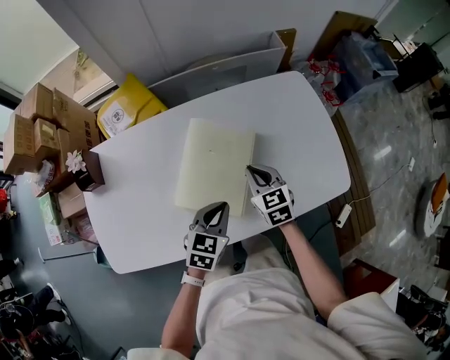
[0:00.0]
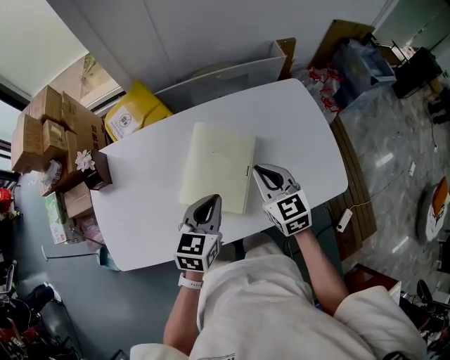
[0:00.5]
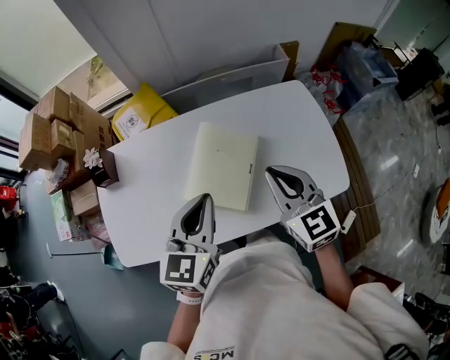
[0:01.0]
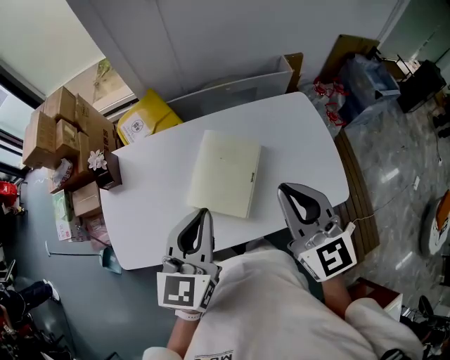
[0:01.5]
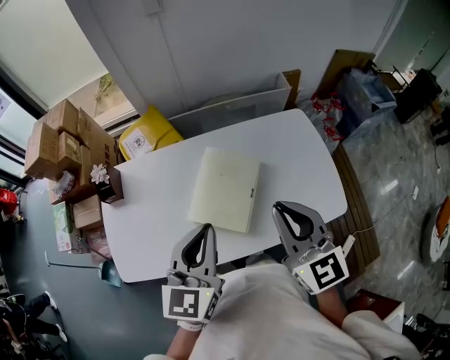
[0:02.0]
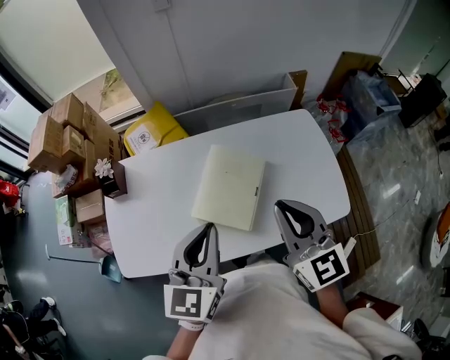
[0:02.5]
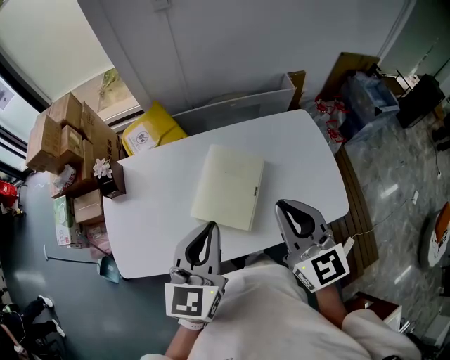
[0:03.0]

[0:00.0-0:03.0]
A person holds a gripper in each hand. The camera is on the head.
0.0 to 1.5 s: Both grippers move upward, some 30 cm. The left gripper changes its angle by roughly 30 degrees. Meanwhile the right gripper changes its angle by some 30 degrees.
1.5 to 3.0 s: There are only small adjustments of the grippers.

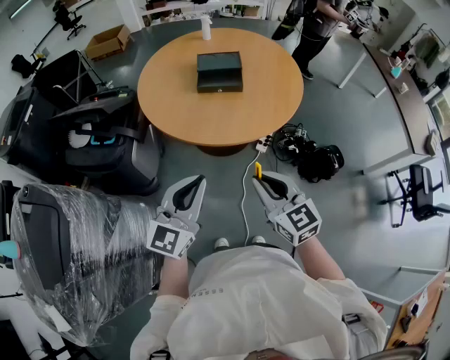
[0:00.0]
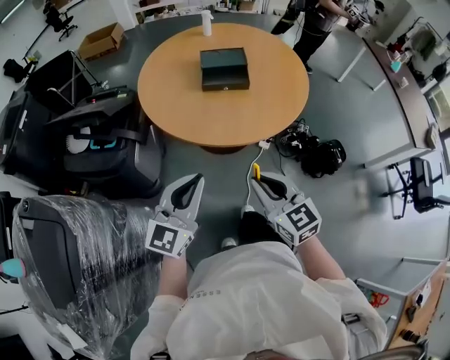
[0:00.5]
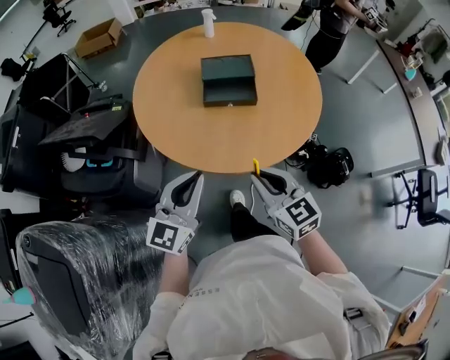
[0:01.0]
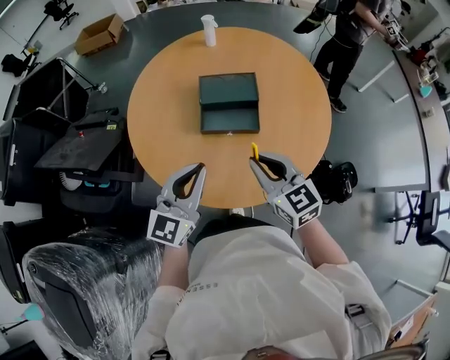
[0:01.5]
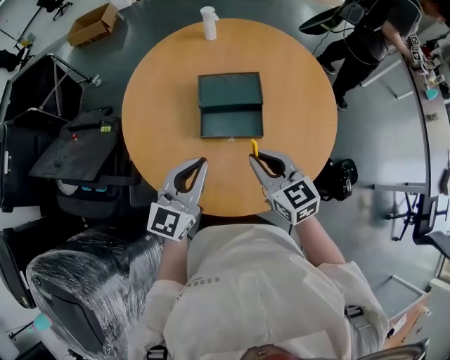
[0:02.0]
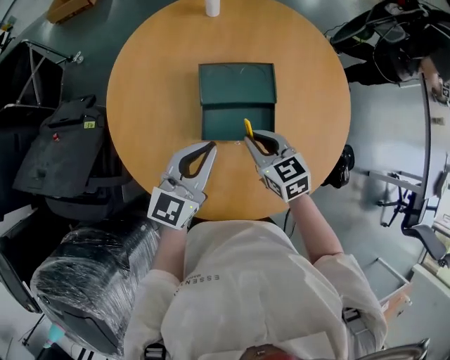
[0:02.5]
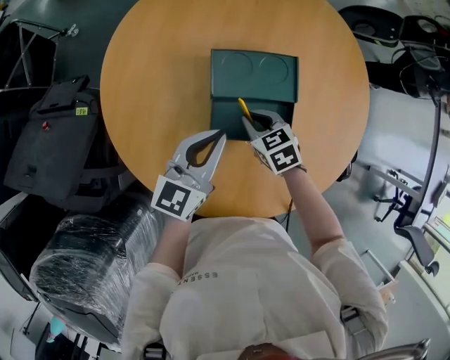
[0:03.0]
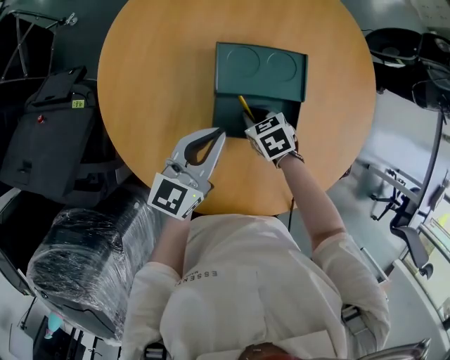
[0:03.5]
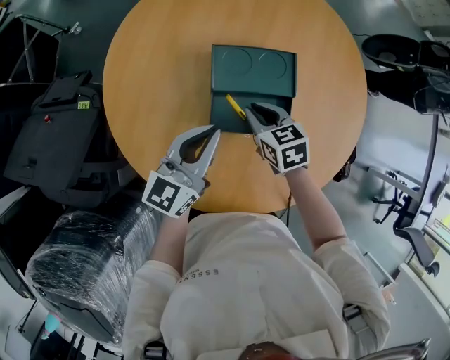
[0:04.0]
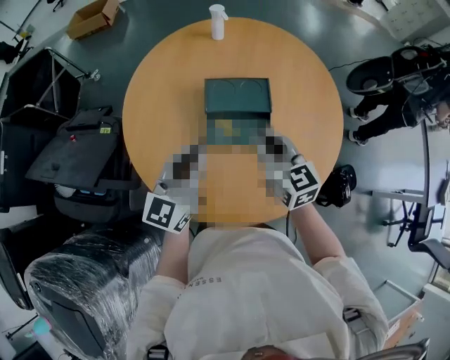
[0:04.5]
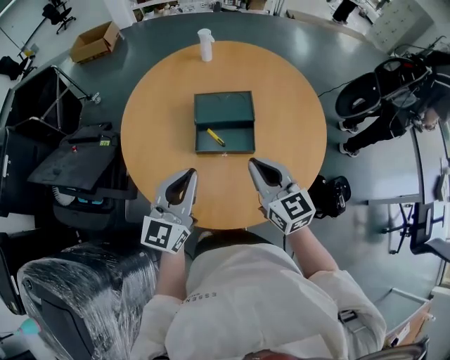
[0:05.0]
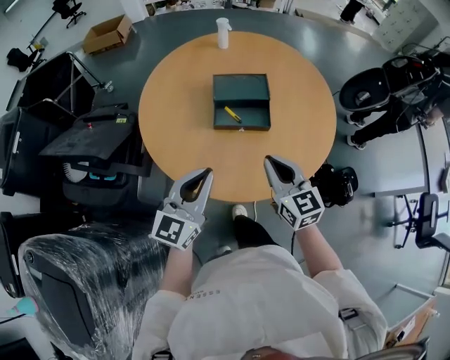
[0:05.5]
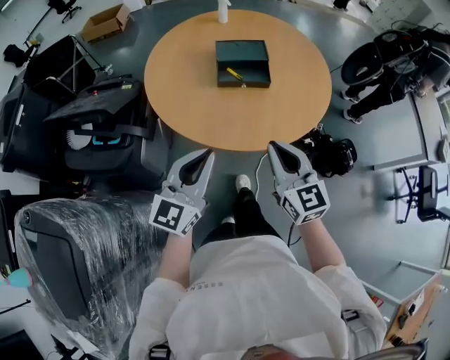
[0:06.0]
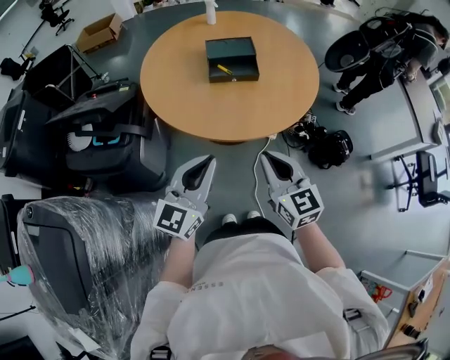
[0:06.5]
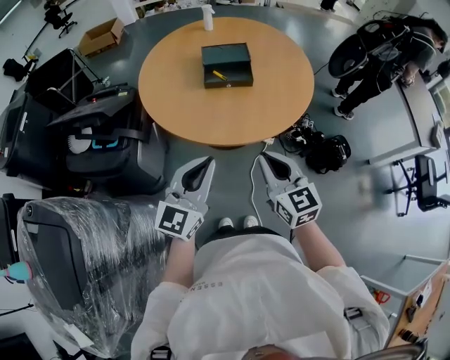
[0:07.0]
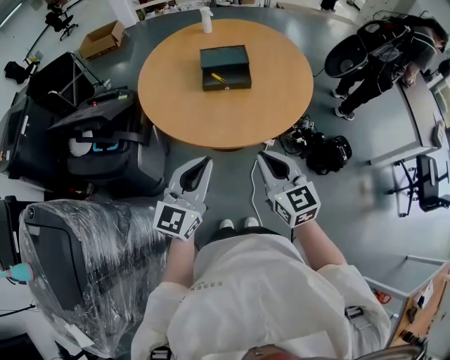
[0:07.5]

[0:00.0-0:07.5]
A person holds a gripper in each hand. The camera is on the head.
0.0 to 2.0 s: The pair of grippers is taken forward, roughly 40 cm.
2.0 to 4.0 s: The left gripper heads forward and downward, covering roughly 15 cm. Meanwhile the right gripper travels forward and downward by about 20 cm, and turns by about 30 degrees.
4.0 to 5.5 s: The two grippers go roughly 30 cm backward and upward. The right gripper angles its fingers upward, by roughly 30 degrees.
5.5 to 7.5 s: The two grippers go about 20 cm backward.

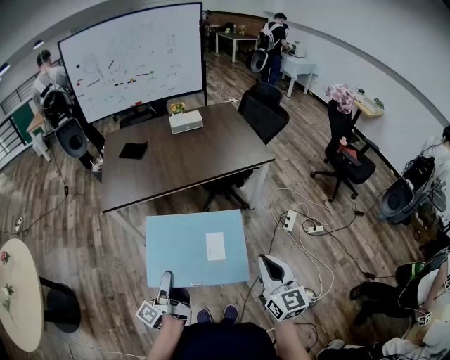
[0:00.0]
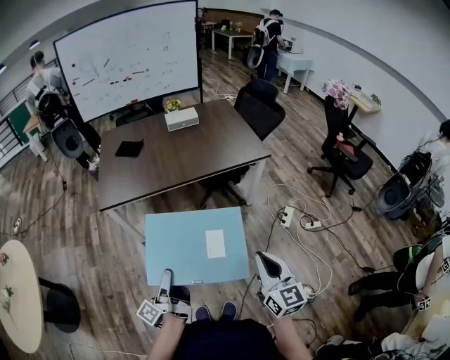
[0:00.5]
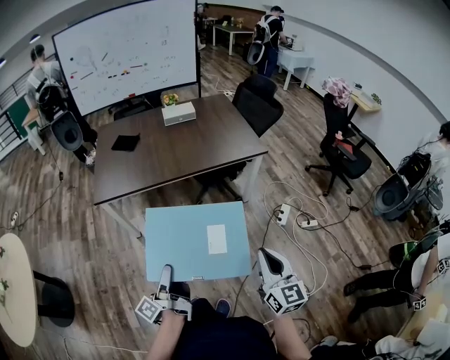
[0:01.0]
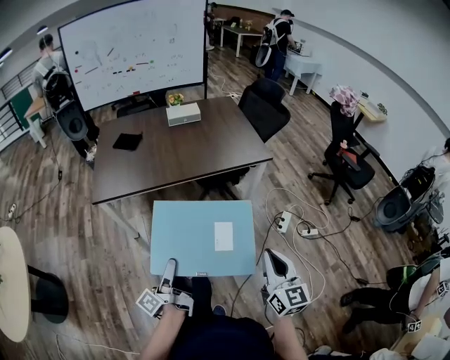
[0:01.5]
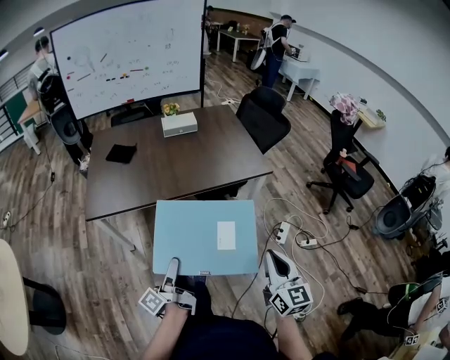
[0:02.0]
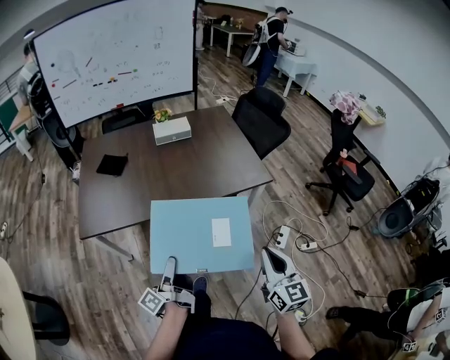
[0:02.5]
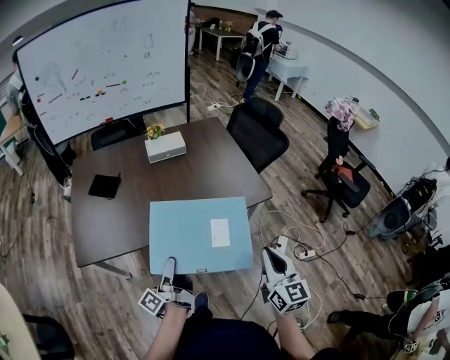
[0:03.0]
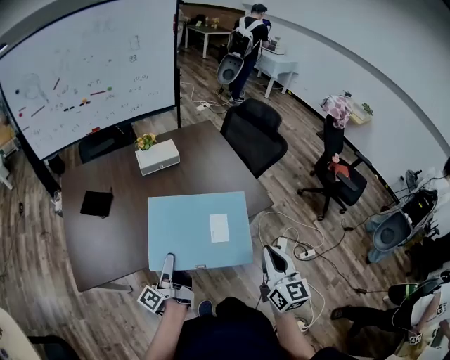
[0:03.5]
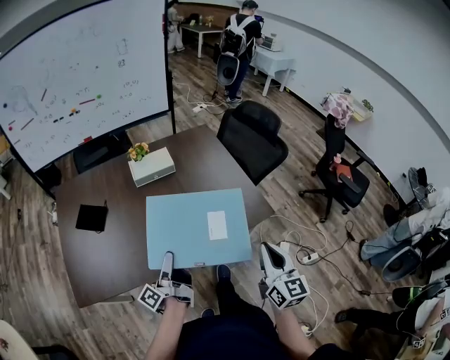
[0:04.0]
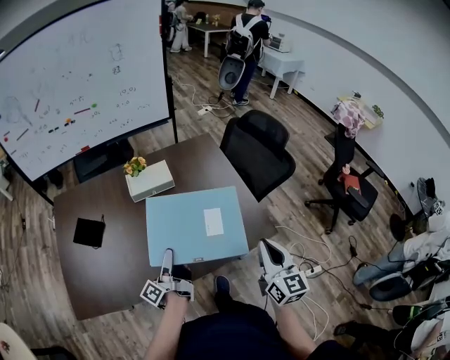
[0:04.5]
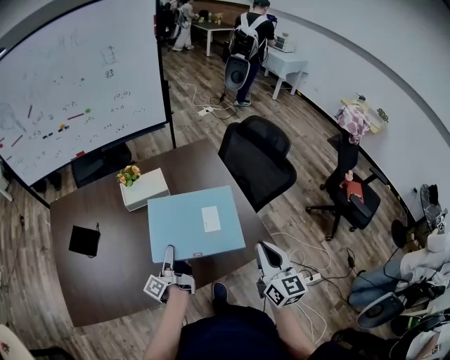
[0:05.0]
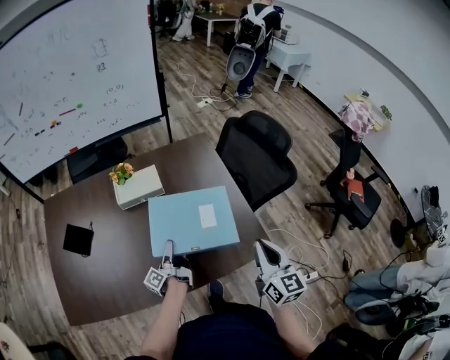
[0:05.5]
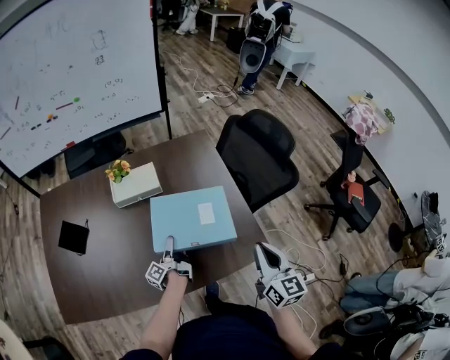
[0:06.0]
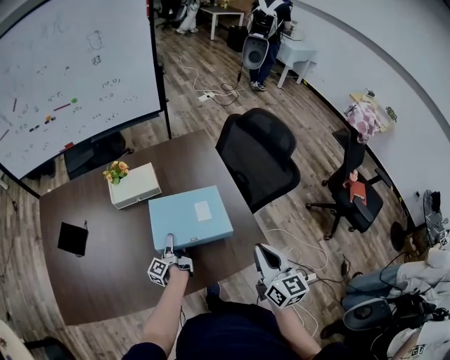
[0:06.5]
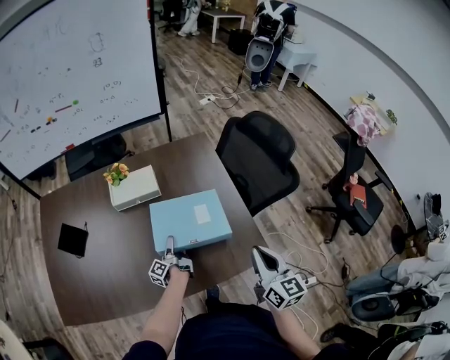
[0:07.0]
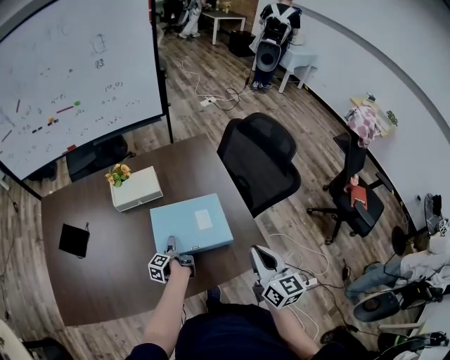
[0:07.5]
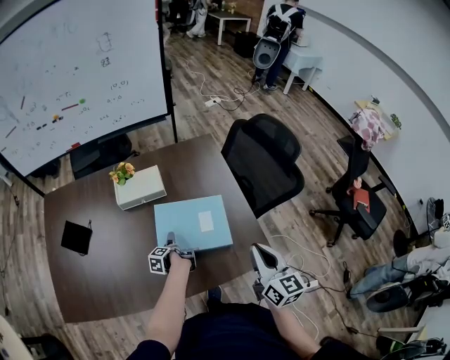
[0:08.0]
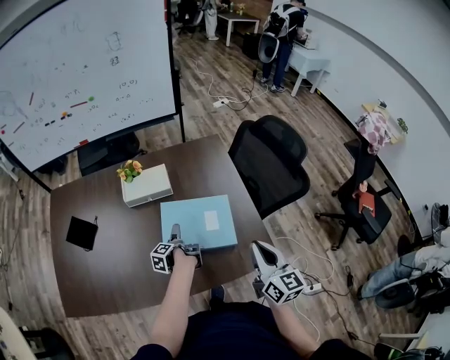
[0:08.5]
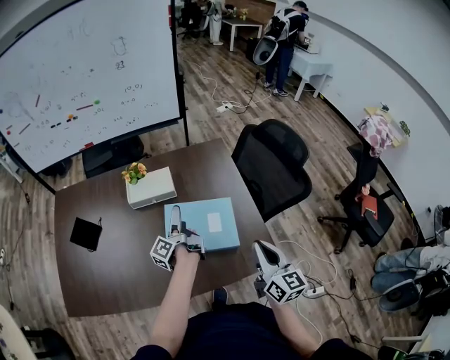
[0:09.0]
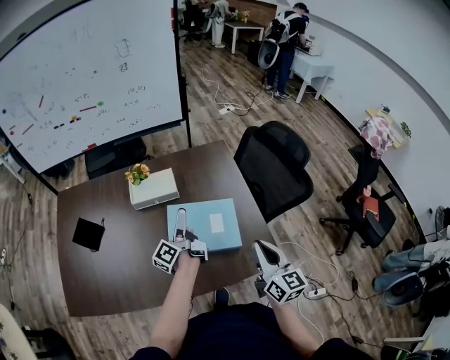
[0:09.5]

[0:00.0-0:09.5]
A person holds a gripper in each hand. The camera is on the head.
0.0 to 2.0 s: The right gripper shifts by about 15 cm.
2.0 to 4.0 s: The right gripper ends up approximately 40 cm from where it was.
4.0 to 5.5 s: The right gripper ends up some 25 cm from where it was.

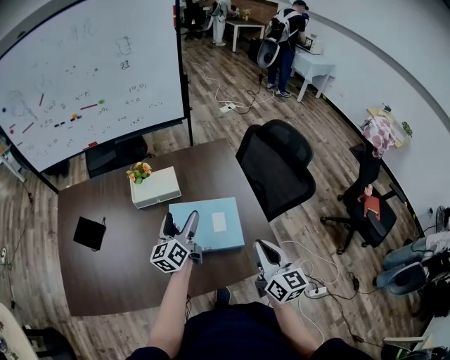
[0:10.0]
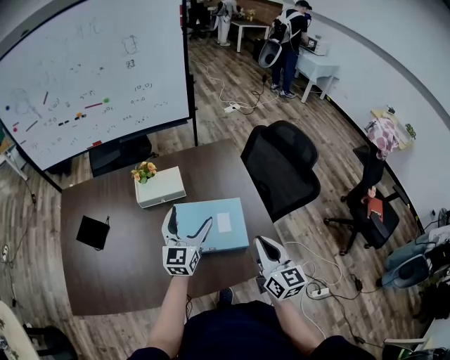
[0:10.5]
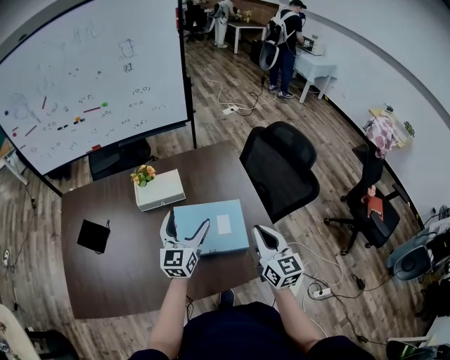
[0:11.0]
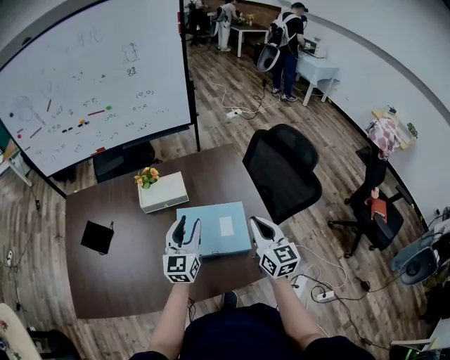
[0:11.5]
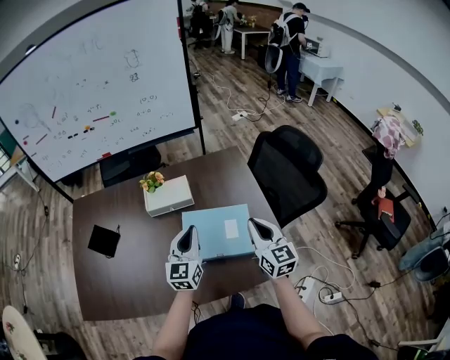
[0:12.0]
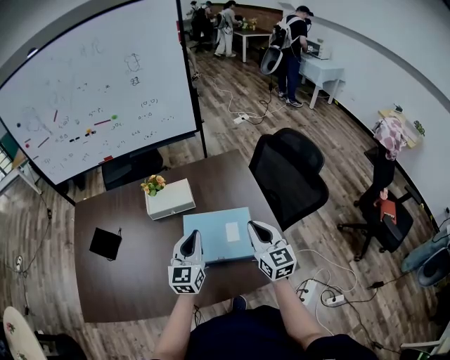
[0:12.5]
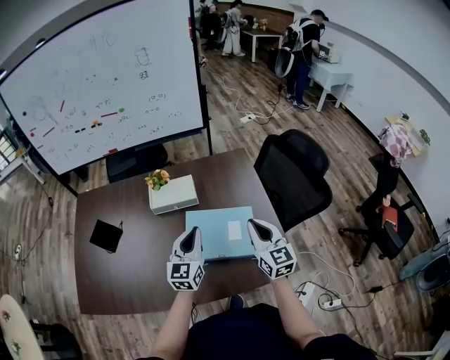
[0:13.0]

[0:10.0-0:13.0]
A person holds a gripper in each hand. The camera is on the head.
10.0 to 11.5 s: The right gripper moves some 10 cm.

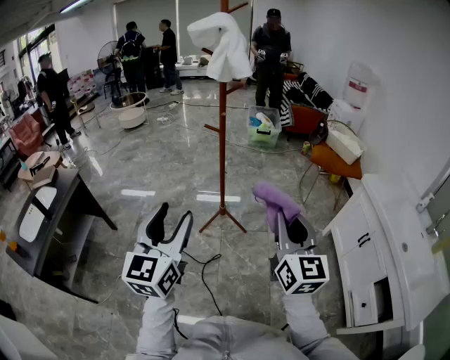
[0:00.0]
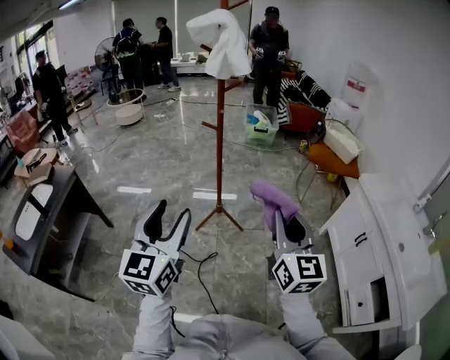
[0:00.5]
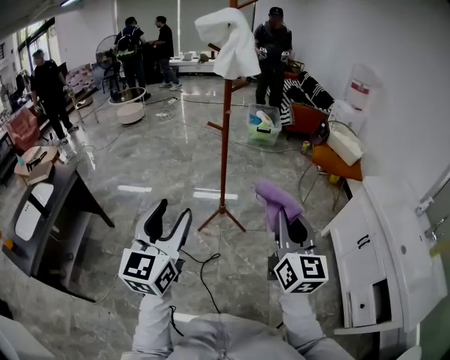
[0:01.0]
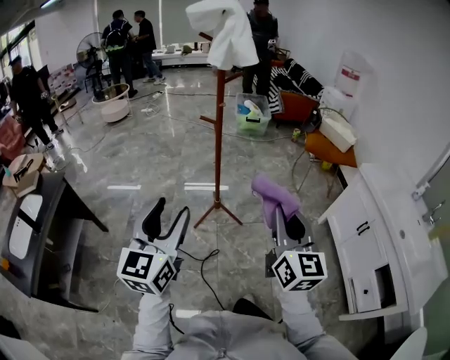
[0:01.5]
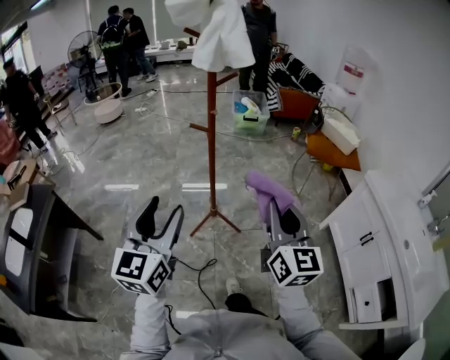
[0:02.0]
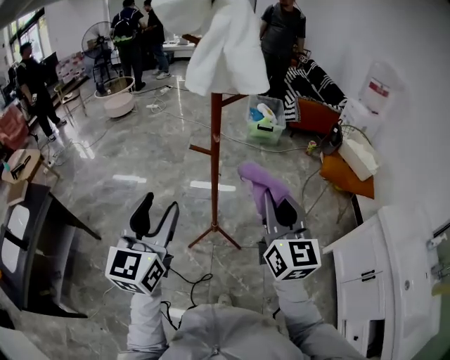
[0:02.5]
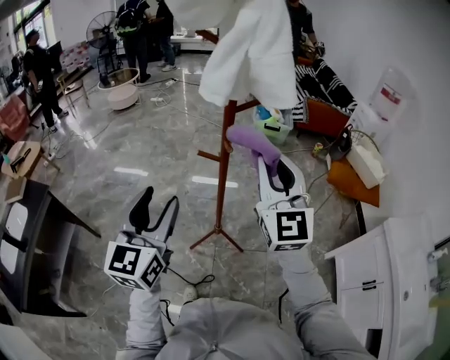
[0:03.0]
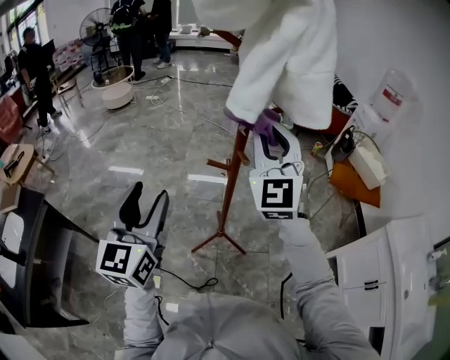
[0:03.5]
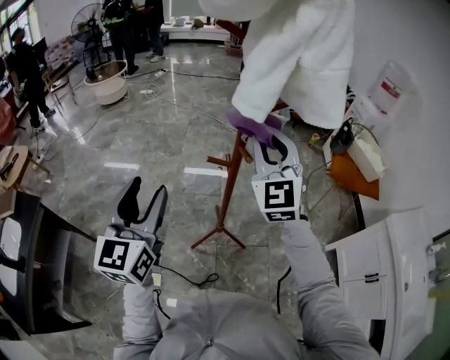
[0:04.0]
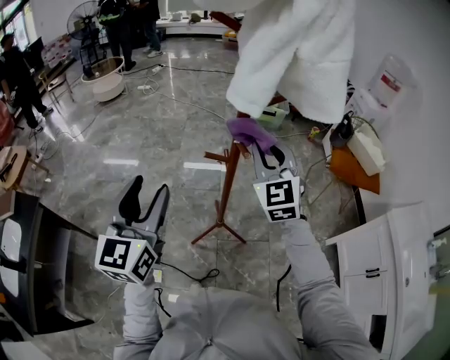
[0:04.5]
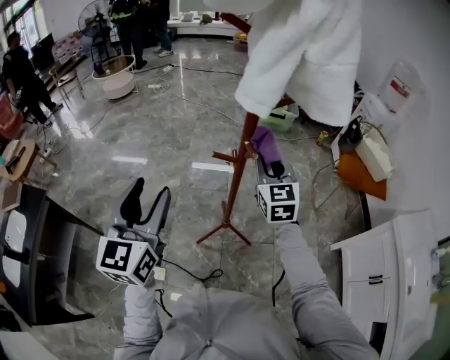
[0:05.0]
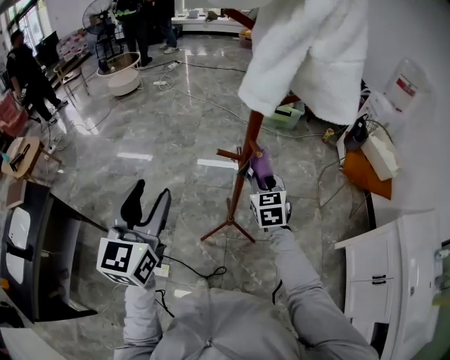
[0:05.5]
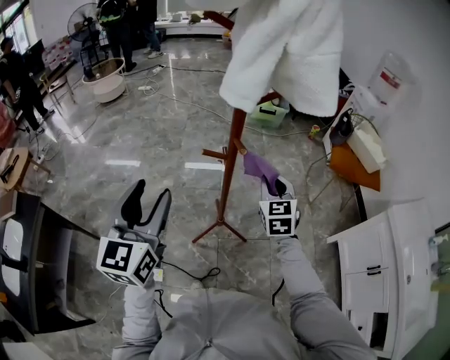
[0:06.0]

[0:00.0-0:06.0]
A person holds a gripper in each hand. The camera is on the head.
0.0 to 2.0 s: Both grippers move forward, roughly 15 cm.
2.0 to 4.0 s: Both grippers travel together forward, approximately 30 cm. The right gripper rotates roughly 40 degrees.
4.0 to 6.0 s: The right gripper goes some 20 cm downward and to the right, and changes its angle by approximately 30 degrees.
